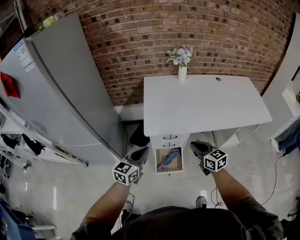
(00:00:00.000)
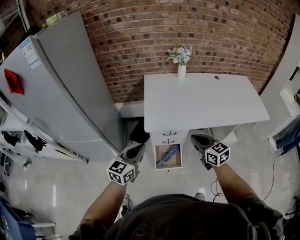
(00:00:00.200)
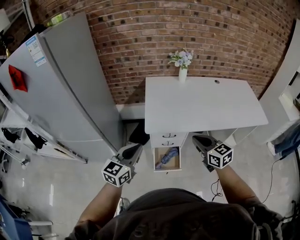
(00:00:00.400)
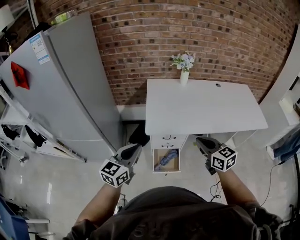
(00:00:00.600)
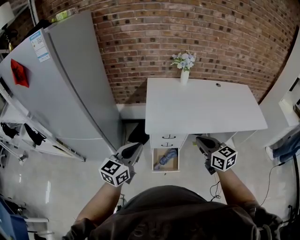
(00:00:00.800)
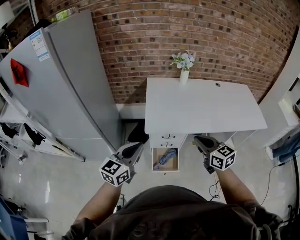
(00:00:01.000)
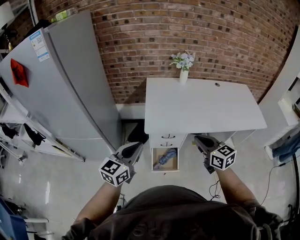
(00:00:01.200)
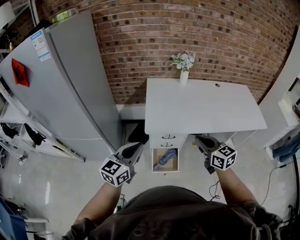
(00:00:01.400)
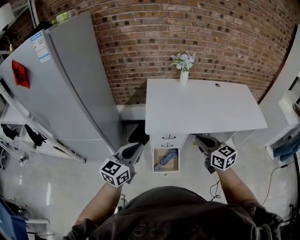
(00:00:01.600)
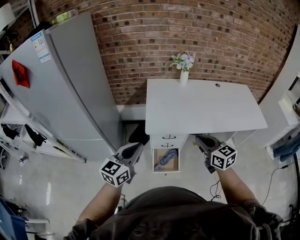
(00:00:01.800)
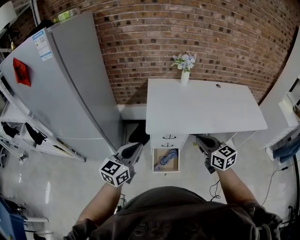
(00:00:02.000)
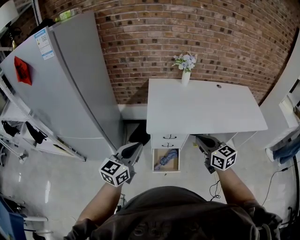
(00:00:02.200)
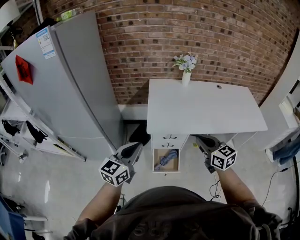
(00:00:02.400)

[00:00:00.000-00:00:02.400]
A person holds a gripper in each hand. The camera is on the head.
00:00:00.000 to 00:00:01.200: Both grippers move upward, some 10 cm.
00:00:01.200 to 00:00:02.400: The grippers move only a little.

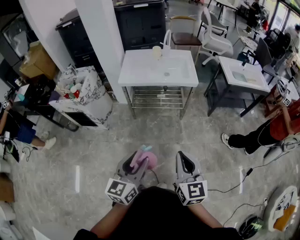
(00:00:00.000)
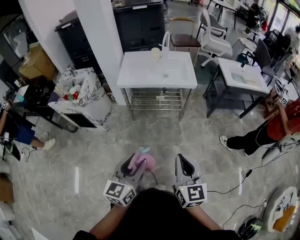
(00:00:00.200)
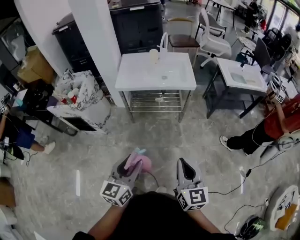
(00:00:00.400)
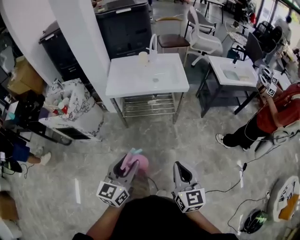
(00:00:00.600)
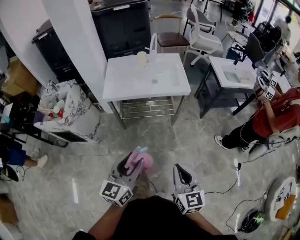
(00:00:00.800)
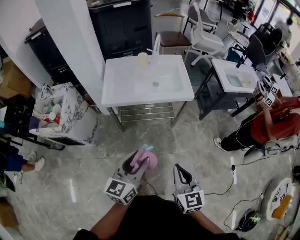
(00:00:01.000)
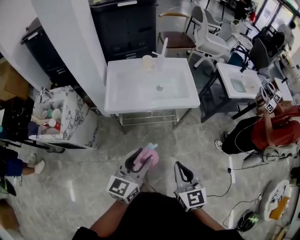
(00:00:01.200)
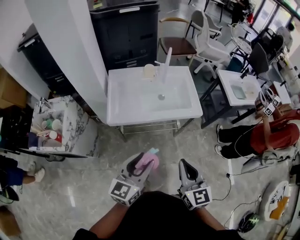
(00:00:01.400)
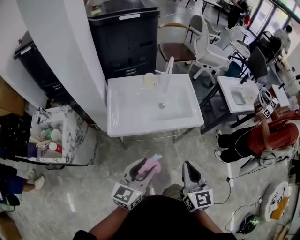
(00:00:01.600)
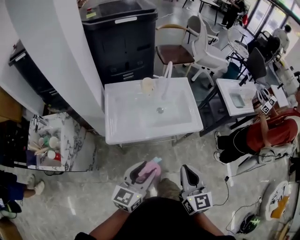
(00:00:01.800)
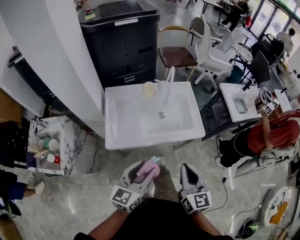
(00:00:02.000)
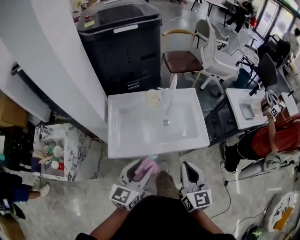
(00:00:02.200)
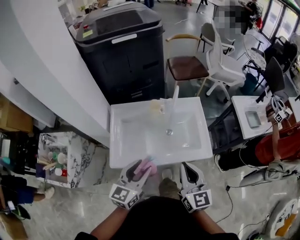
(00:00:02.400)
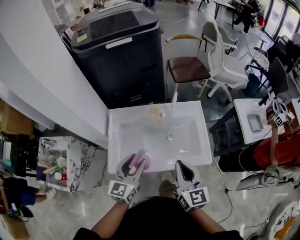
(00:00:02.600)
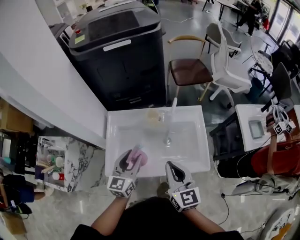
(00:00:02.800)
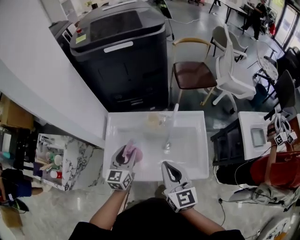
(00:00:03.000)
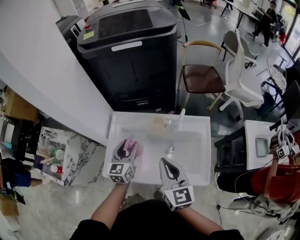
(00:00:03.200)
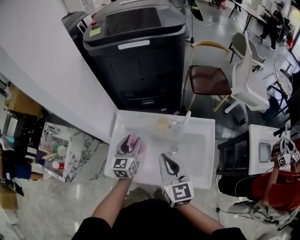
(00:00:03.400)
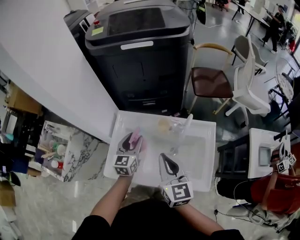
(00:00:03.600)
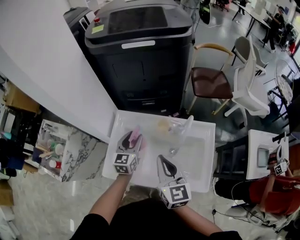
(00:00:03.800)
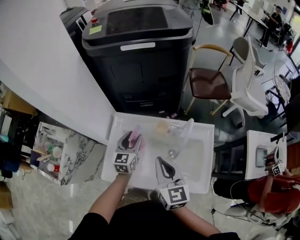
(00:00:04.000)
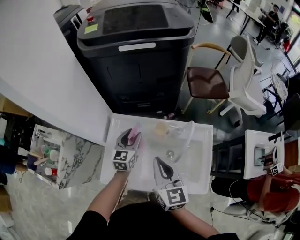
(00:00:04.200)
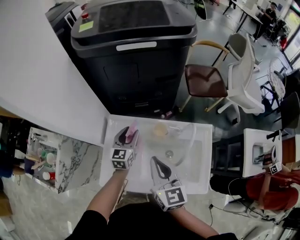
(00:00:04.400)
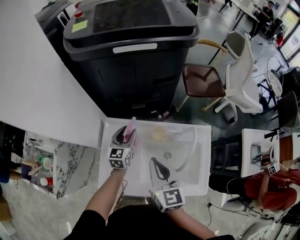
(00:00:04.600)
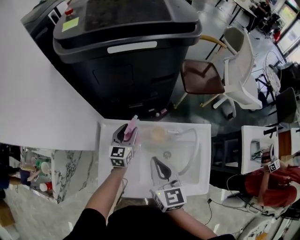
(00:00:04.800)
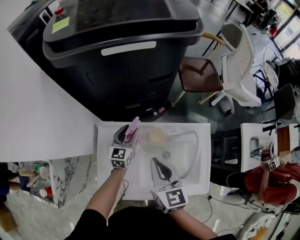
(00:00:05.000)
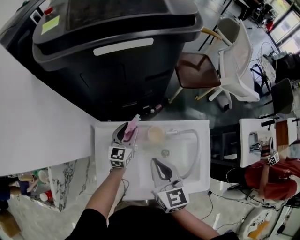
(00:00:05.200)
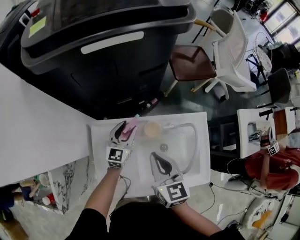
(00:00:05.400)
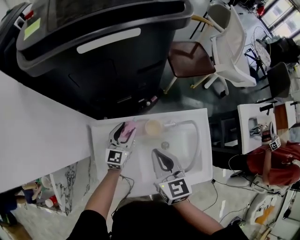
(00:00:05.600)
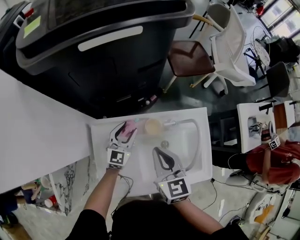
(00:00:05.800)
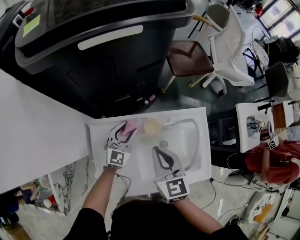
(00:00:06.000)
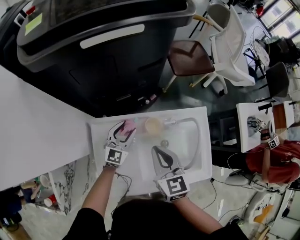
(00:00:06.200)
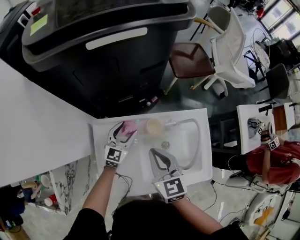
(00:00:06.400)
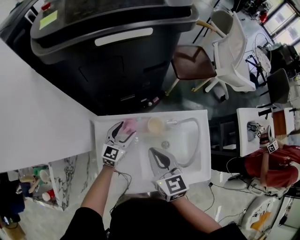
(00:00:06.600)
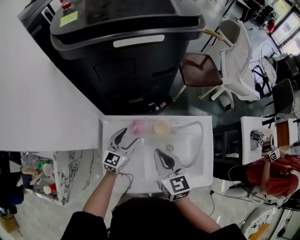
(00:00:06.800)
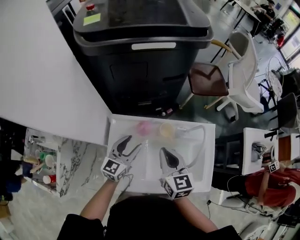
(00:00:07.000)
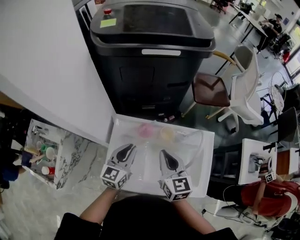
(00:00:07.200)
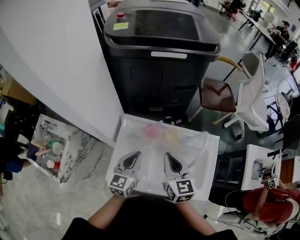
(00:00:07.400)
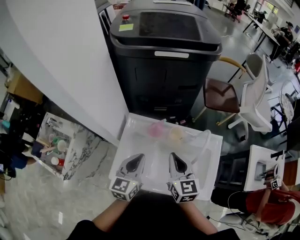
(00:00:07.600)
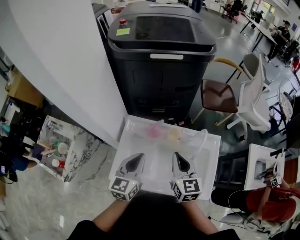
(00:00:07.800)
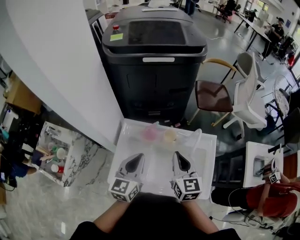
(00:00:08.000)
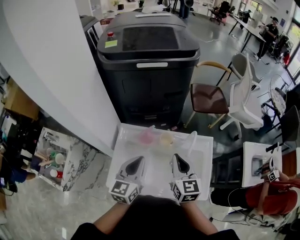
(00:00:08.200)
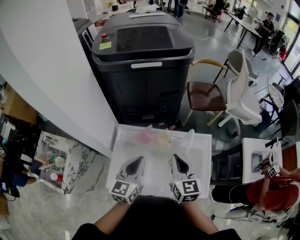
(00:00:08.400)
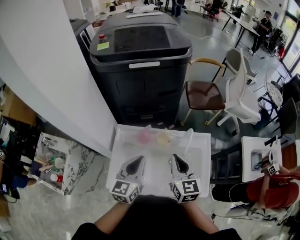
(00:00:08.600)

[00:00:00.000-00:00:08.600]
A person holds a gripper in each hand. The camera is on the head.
00:00:00.000 to 00:00:01.400: The two grippers go approximately 35 cm forward.
00:00:01.400 to 00:00:02.800: Both grippers travel together forward, some 40 cm.
00:00:02.800 to 00:00:04.400: The right gripper shifts roughly 20 cm forward and to the left. The left gripper goes roughly 25 cm forward and downward.
00:00:04.400 to 00:00:05.800: The left gripper heads downward and forward, covering approximately 10 cm, and turns by approximately 30 degrees, while the right gripper goes roughly 10 cm forward and downward.
00:00:05.800 to 00:00:07.200: The left gripper is displaced backward and upward by approximately 20 cm, swivels approximately 20 degrees, and closes up. The right gripper heads backward, covering about 5 cm.
00:00:07.200 to 00:00:08.600: The right gripper goes approximately 10 cm to the right, while the left gripper shifts about 15 cm upward, to the right and backward.

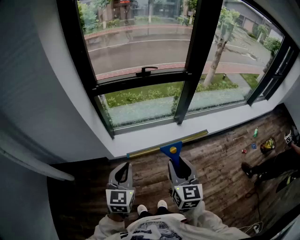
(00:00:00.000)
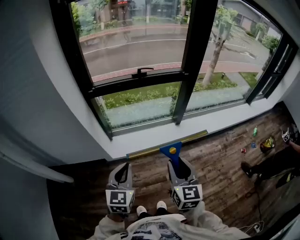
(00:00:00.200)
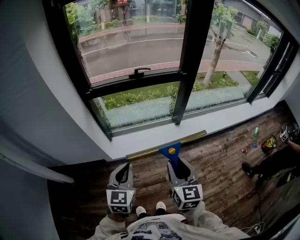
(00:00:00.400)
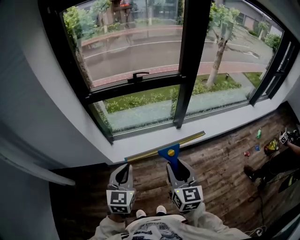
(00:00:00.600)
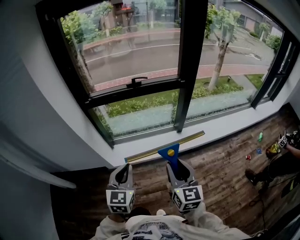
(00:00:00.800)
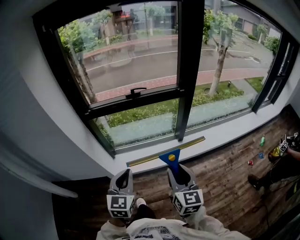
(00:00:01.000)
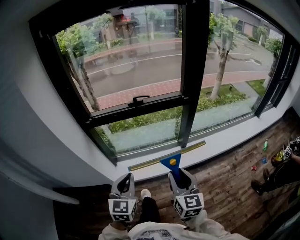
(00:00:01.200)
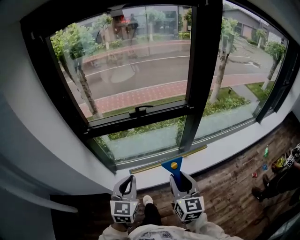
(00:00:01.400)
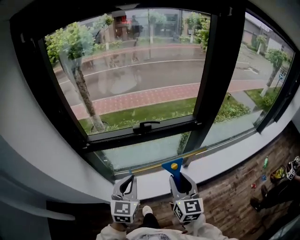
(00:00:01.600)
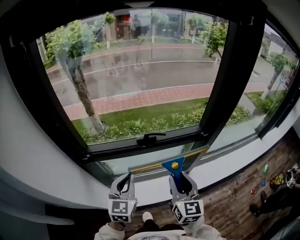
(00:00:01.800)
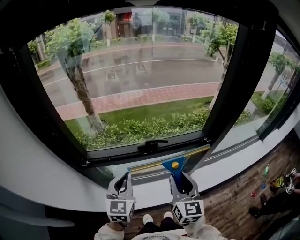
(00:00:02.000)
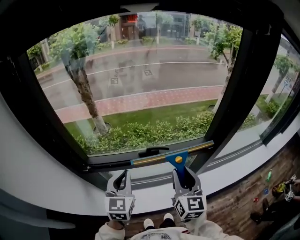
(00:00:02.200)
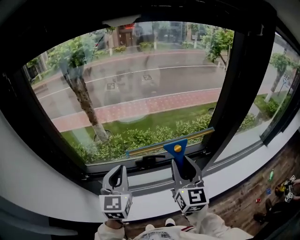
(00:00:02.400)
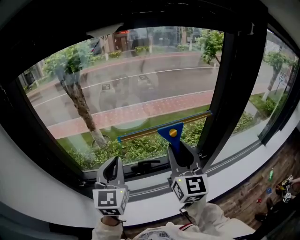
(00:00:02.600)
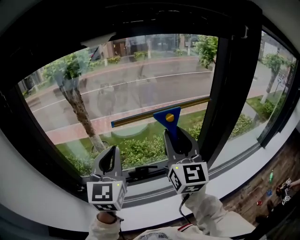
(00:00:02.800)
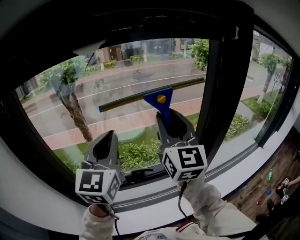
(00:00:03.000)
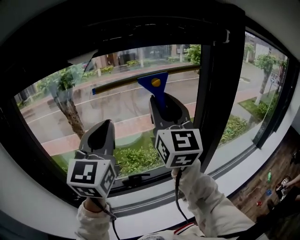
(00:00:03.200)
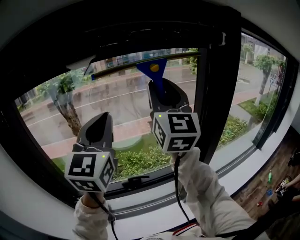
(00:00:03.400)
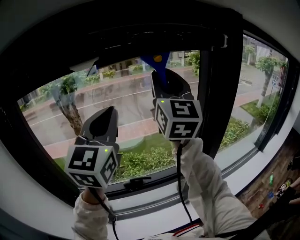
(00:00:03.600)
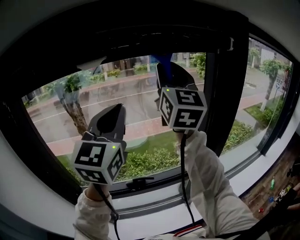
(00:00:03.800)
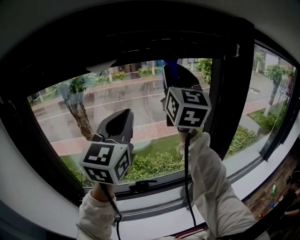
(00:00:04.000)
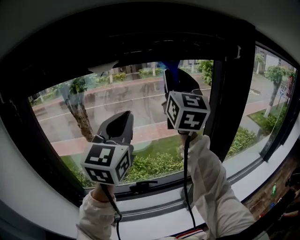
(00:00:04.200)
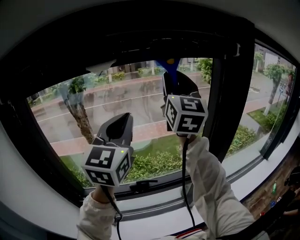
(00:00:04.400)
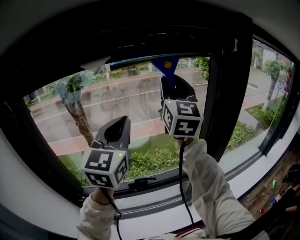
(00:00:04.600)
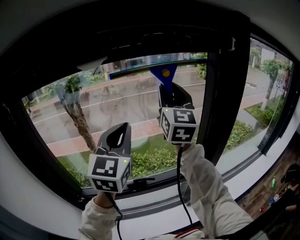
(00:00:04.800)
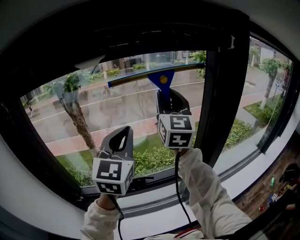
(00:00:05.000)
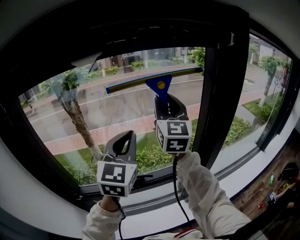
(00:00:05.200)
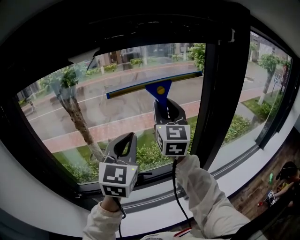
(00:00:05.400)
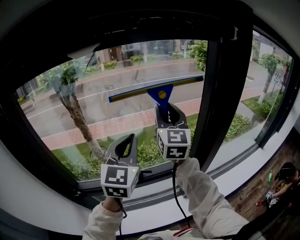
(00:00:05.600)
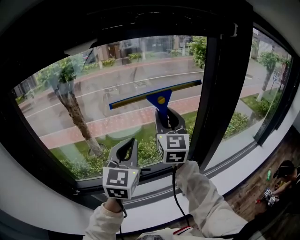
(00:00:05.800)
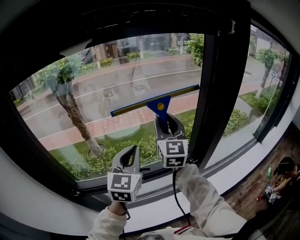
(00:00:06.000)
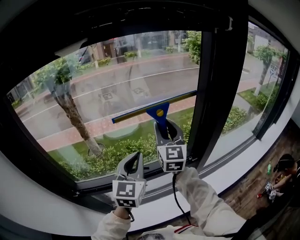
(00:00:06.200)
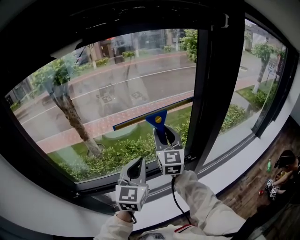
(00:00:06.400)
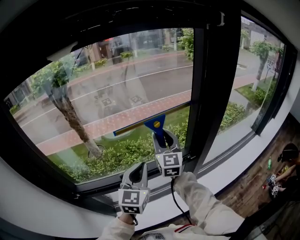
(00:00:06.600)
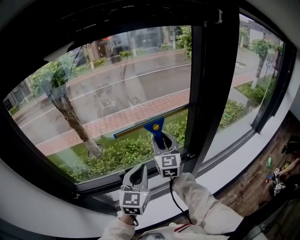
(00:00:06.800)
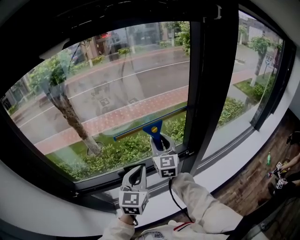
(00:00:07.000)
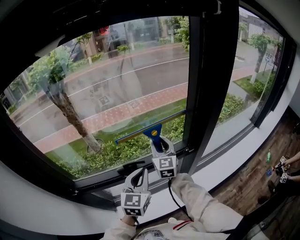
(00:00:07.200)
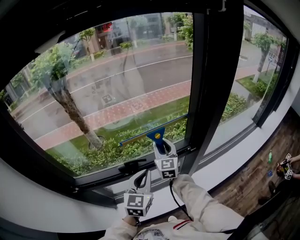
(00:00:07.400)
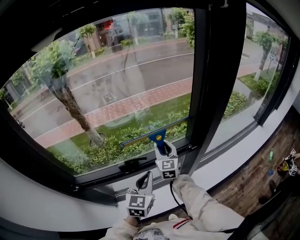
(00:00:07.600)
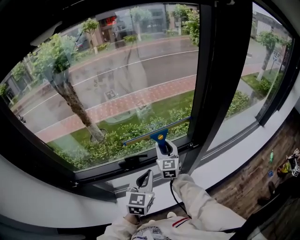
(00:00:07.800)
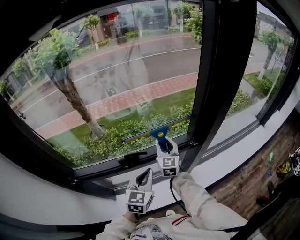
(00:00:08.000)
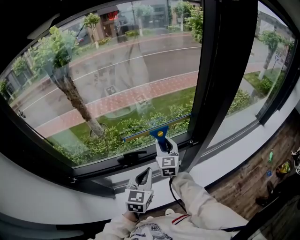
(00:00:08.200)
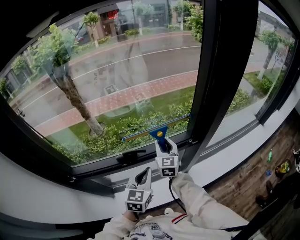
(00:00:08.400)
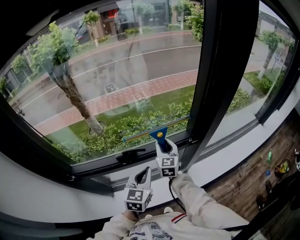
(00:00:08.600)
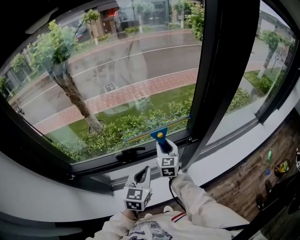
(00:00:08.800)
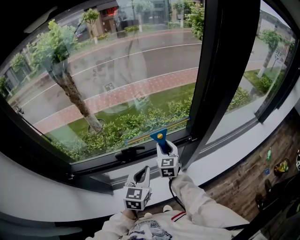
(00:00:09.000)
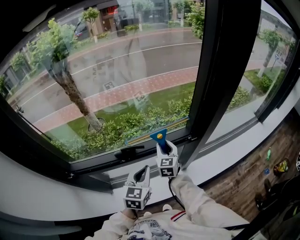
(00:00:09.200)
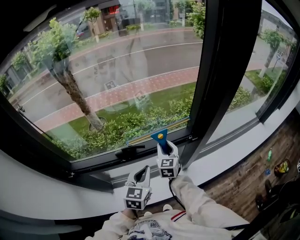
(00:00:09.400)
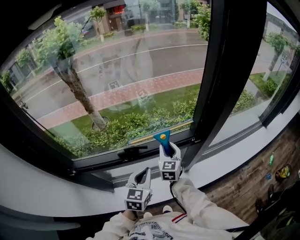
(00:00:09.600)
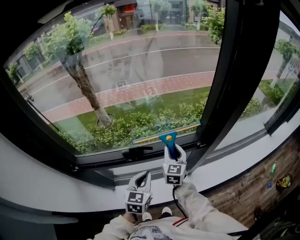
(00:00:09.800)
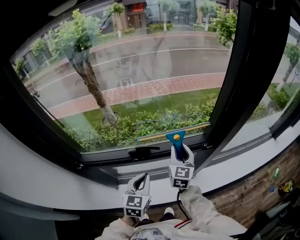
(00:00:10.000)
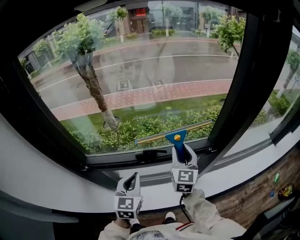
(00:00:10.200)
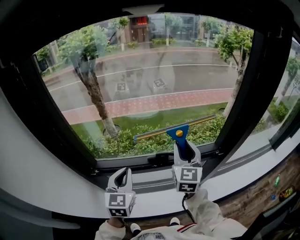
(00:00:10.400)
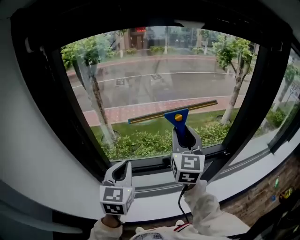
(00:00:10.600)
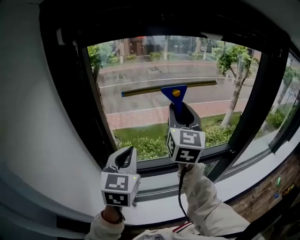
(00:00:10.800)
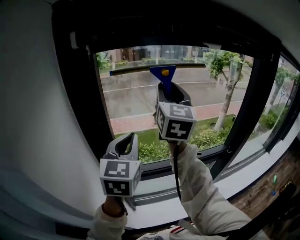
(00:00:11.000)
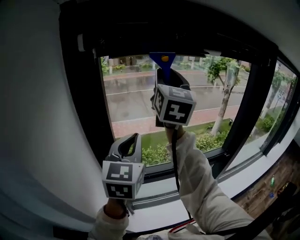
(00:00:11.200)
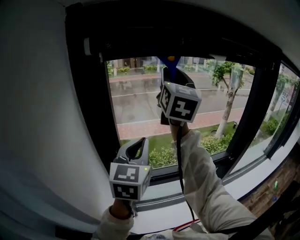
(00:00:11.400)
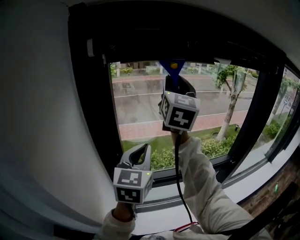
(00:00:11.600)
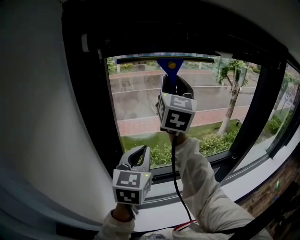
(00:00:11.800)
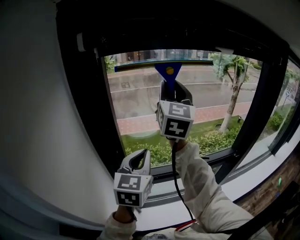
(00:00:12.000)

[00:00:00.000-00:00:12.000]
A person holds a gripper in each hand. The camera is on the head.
00:00:00.000 to 00:00:01.600: The grippers both shift forward by approximately 35 cm.
00:00:01.600 to 00:00:03.000: The left gripper heads upward and forward, covering approximately 40 cm, and swivels approximately 20 degrees. Meanwhile the right gripper heads forward and upward, covering approximately 50 cm, and turns by about 30 degrees.
00:00:03.000 to 00:00:04.400: The left gripper goes some 10 cm upward. The right gripper heads upward and forward, covering about 15 cm.
00:00:04.400 to 00:00:06.000: The grippers both shift downward by about 25 cm.
00:00:06.000 to 00:00:07.600: The two grippers go about 25 cm downward.
00:00:07.600 to 00:00:09.000: The right gripper is displaced downward by roughly 5 cm.
00:00:09.000 to 00:00:10.400: The left gripper shifts about 25 cm to the left and upward, and changes its angle by about 20 degrees; the right gripper moves upward and to the left, approximately 20 cm.
00:00:10.400 to 00:00:12.000: The right gripper is displaced upward and to the left by some 40 cm, and swivels some 20 degrees. The left gripper shifts approximately 20 cm upward and to the left.
